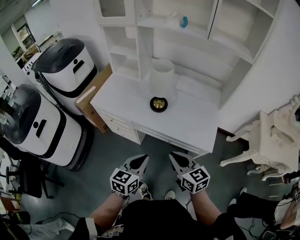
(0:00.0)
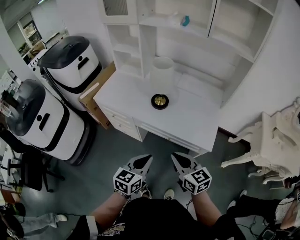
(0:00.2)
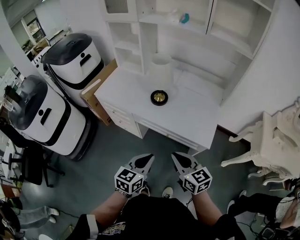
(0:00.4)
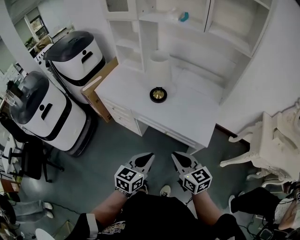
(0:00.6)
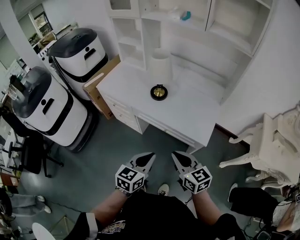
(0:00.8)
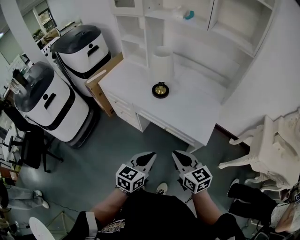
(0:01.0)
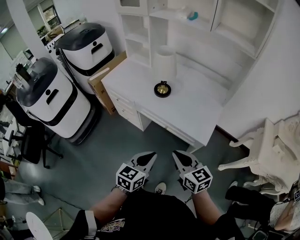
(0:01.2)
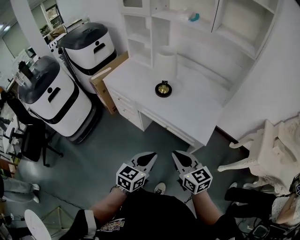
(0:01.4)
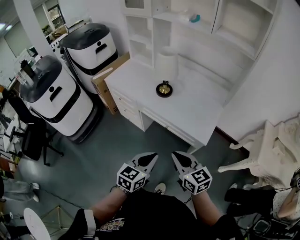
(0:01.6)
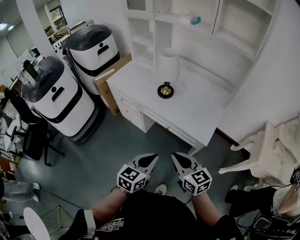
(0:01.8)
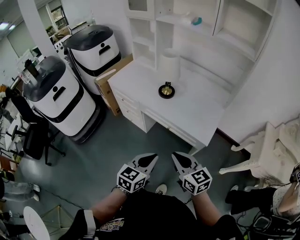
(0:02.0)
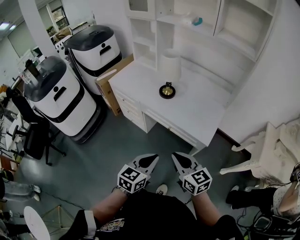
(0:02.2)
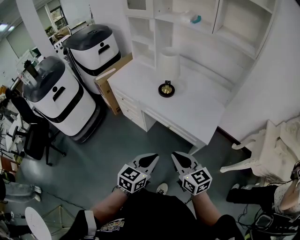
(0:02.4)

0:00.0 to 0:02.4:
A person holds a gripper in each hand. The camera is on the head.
0:00.0 to 0:01.2: The right gripper heads backward and to the right, covering approximately 15 cm, while the left gripper is displaced to the right and backward by roughly 15 cm.
0:01.2 to 0:02.4: There are only small adjustments of the grippers.

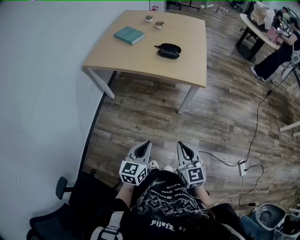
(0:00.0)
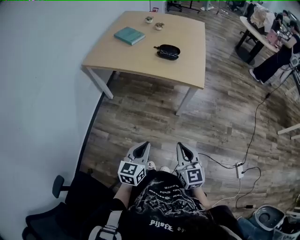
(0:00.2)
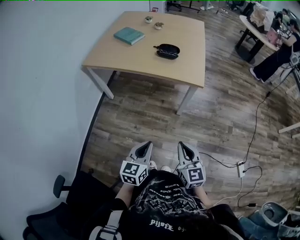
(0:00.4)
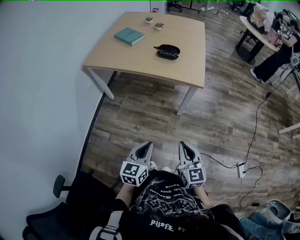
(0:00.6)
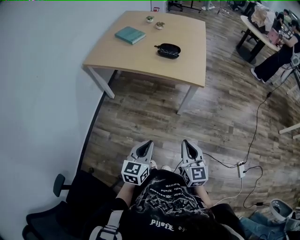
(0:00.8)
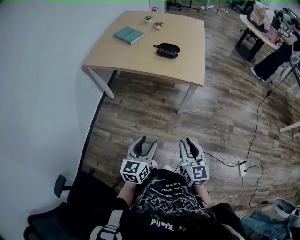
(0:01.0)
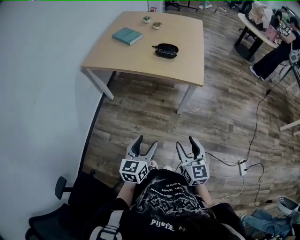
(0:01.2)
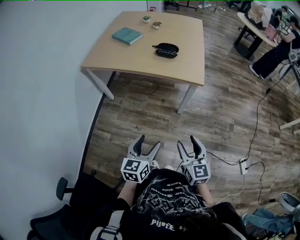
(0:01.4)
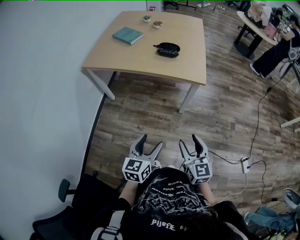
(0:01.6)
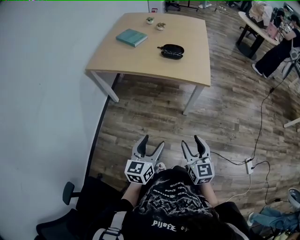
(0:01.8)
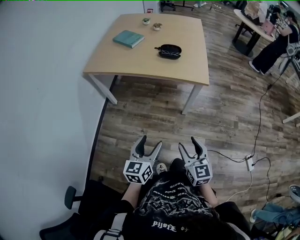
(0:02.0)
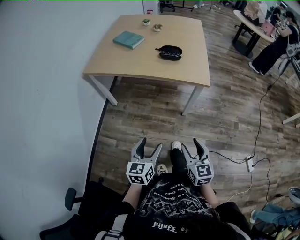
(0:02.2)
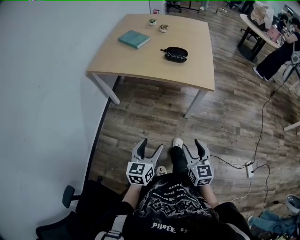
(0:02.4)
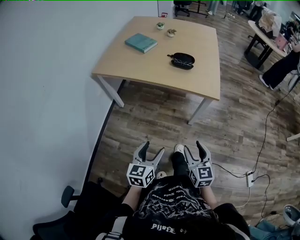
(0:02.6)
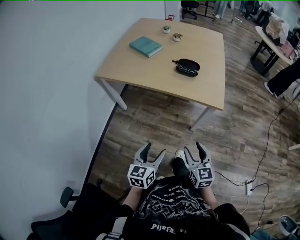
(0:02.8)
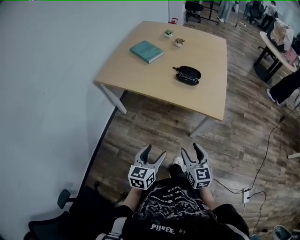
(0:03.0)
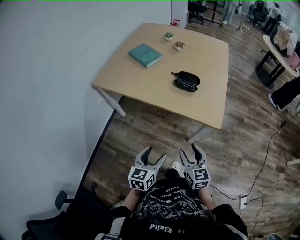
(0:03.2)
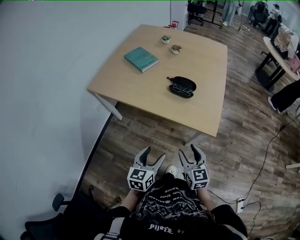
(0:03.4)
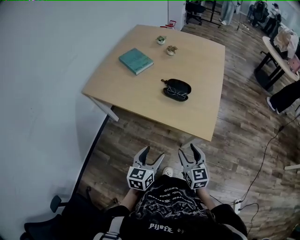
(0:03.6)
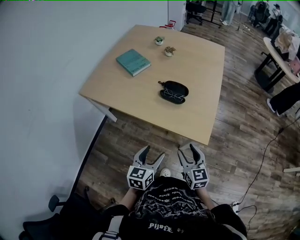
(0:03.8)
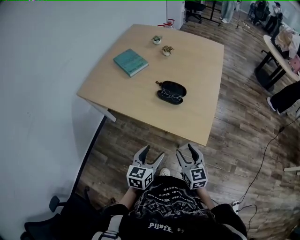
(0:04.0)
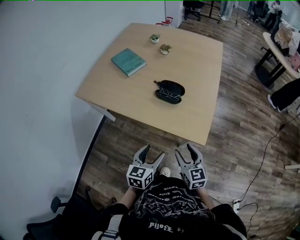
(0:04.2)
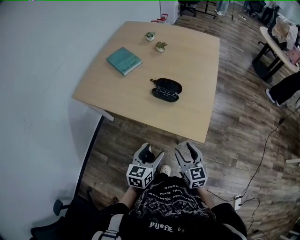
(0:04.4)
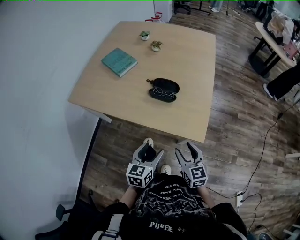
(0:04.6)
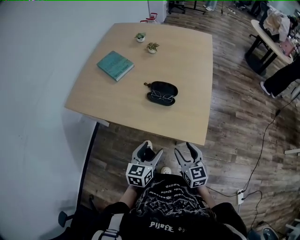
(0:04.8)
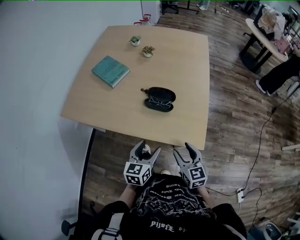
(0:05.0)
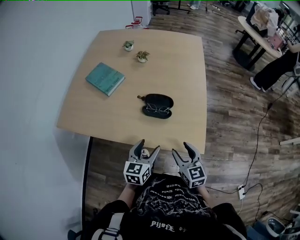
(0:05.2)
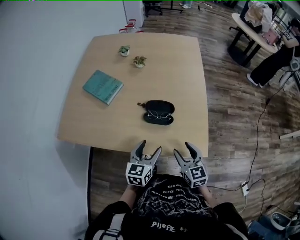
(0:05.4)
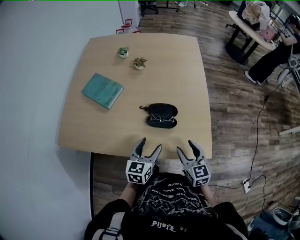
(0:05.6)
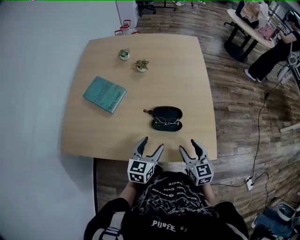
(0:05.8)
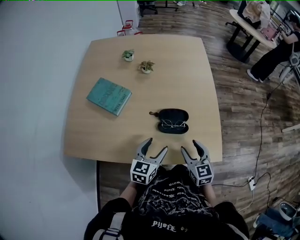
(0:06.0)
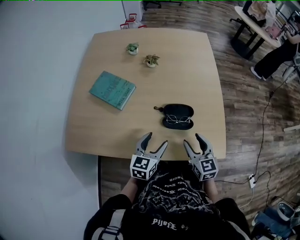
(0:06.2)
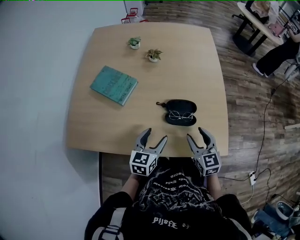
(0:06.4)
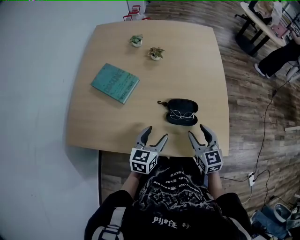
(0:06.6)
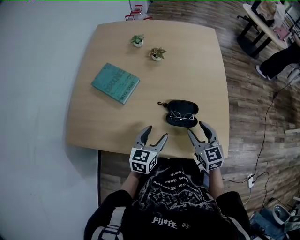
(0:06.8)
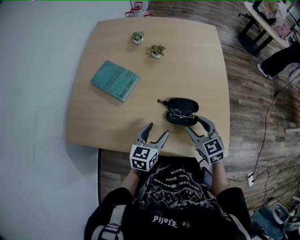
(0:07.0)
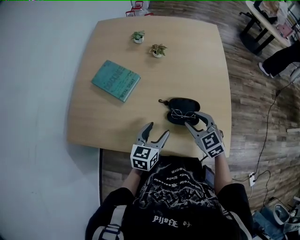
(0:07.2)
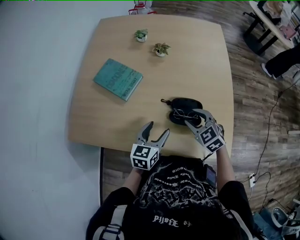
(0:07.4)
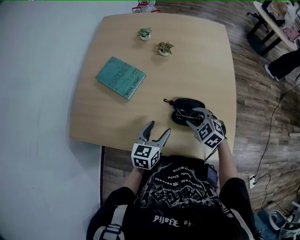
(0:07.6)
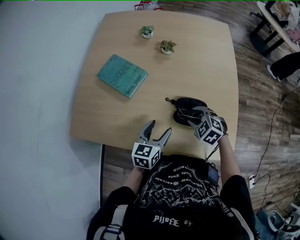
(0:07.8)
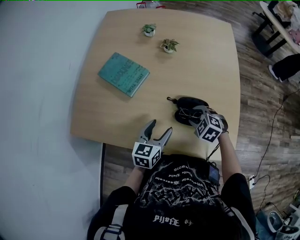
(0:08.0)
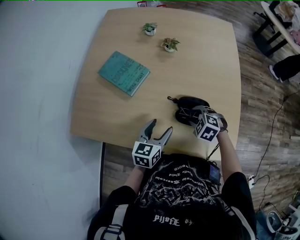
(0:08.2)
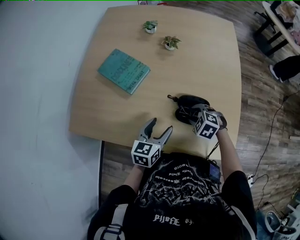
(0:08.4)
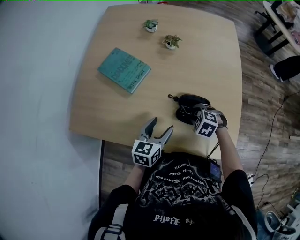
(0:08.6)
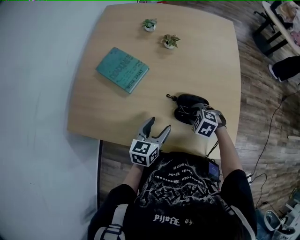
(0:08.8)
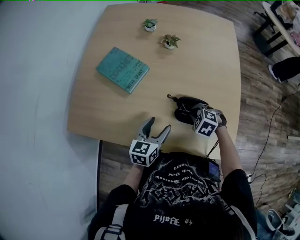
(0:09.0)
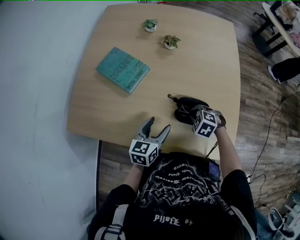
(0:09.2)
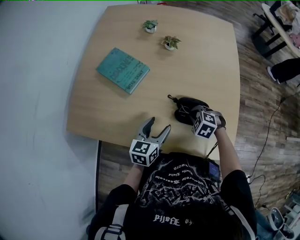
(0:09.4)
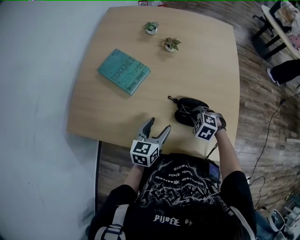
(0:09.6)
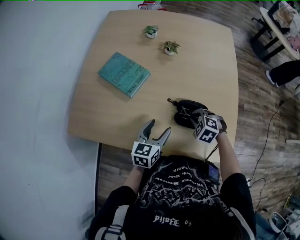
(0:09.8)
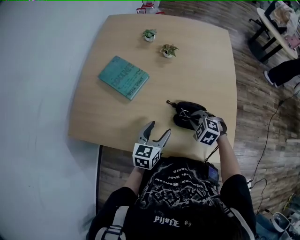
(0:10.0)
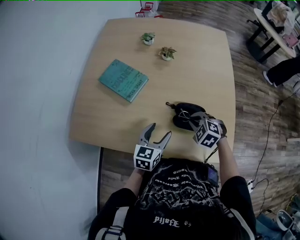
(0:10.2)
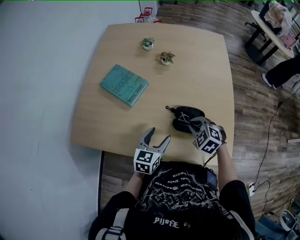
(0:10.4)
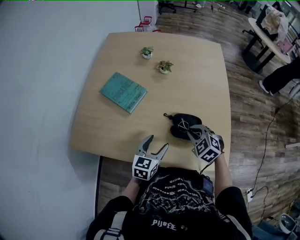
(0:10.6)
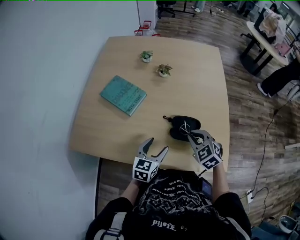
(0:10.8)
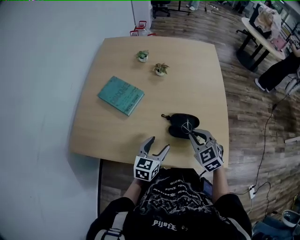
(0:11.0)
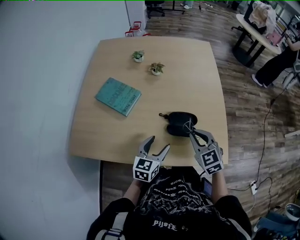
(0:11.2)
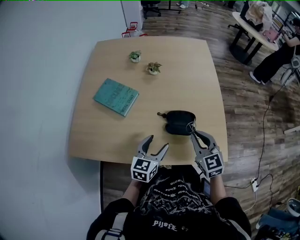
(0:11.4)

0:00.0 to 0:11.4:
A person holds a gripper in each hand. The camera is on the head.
0:00.0 to 0:01.4: The left gripper opens up. Meanwhile the right gripper opens its fingers.
0:01.4 to 0:02.8: The two grippers go approximately 15 cm forward and to the left.
0:02.8 to 0:04.2: The grippers both shift forward and to the right by about 25 cm.
0:04.2 to 0:05.6: The grippers both shift forward by roughly 20 cm.
0:05.6 to 0:07.2: The left gripper travels to the left and forward by roughly 10 cm. The right gripper goes about 15 cm forward and to the left, and changes its angle by approximately 30 degrees.
0:07.2 to 0:08.6: The right gripper moves downward, roughly 10 cm, and points its fingers some 40 degrees further downward.
0:08.6 to 0:10.0: The right gripper closes.
0:10.0 to 0:11.4: The left gripper moves some 5 cm; the right gripper moves upward and backward, approximately 15 cm, and tilts its fingers some 40 degrees upward.

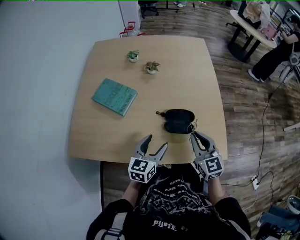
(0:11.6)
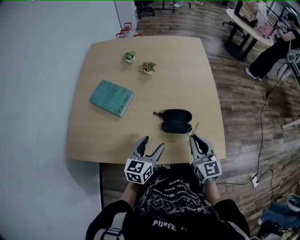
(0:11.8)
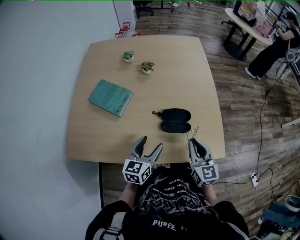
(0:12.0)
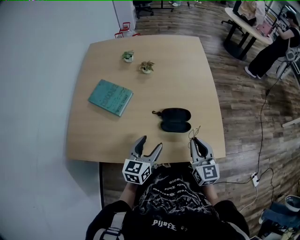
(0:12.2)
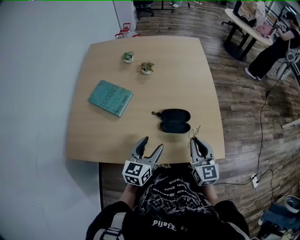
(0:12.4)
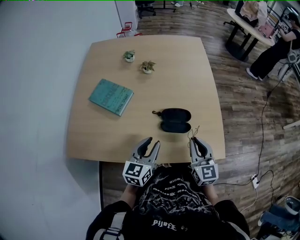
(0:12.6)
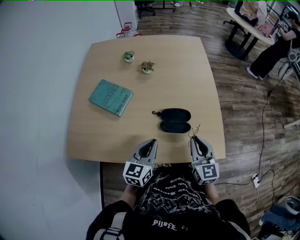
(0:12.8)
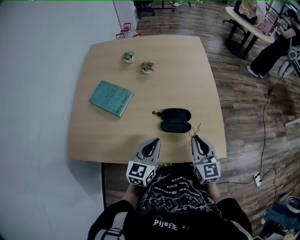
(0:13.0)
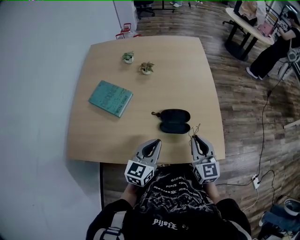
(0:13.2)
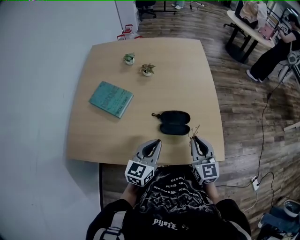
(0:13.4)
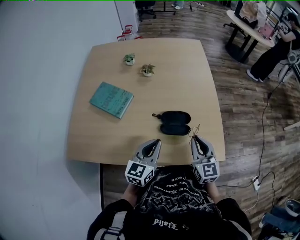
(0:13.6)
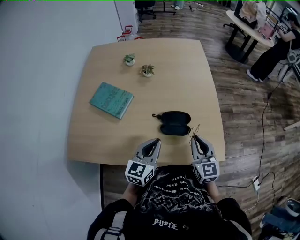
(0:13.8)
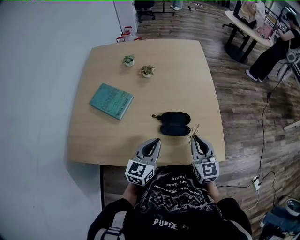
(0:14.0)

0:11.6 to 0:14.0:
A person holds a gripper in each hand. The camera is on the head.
0:11.6 to 0:12.8: The left gripper closes.
0:12.8 to 0:14.0: The grippers move only a little.

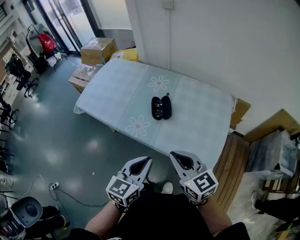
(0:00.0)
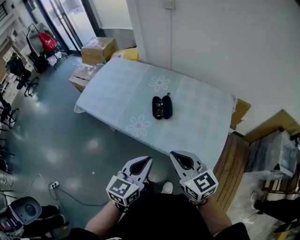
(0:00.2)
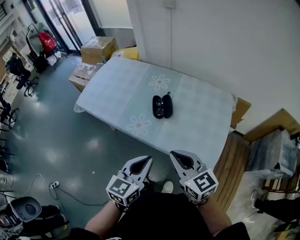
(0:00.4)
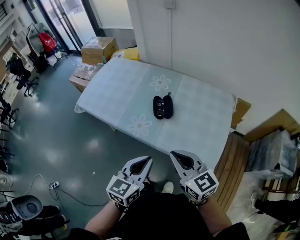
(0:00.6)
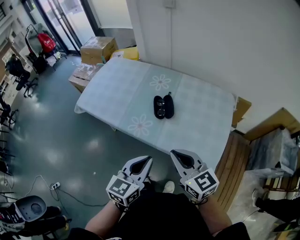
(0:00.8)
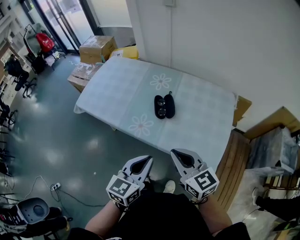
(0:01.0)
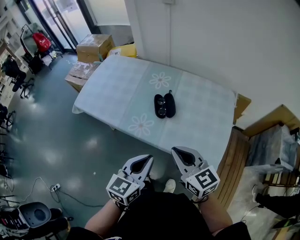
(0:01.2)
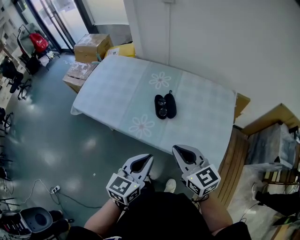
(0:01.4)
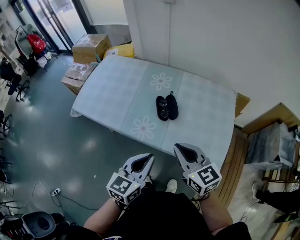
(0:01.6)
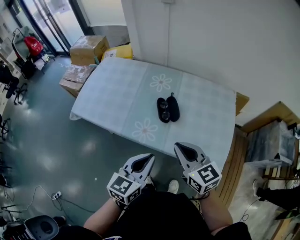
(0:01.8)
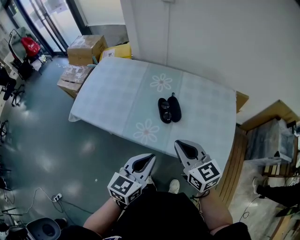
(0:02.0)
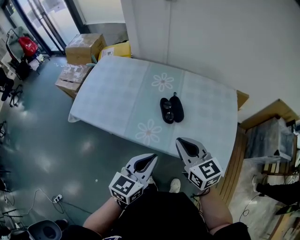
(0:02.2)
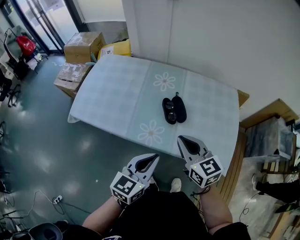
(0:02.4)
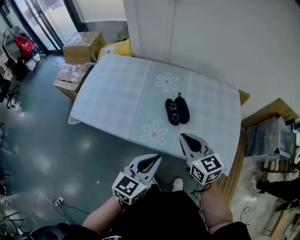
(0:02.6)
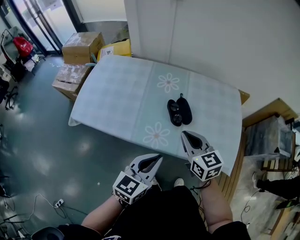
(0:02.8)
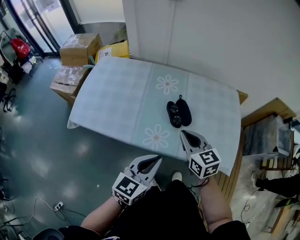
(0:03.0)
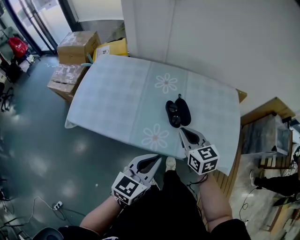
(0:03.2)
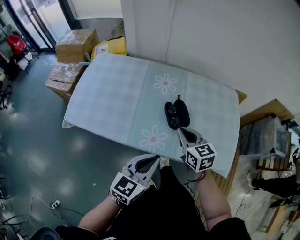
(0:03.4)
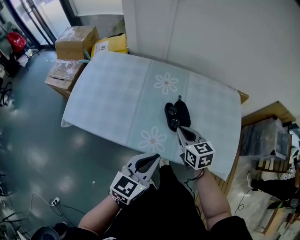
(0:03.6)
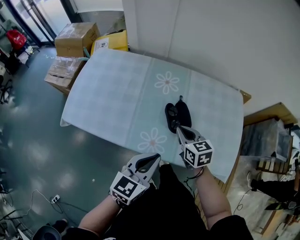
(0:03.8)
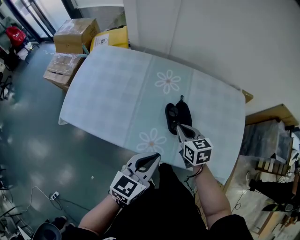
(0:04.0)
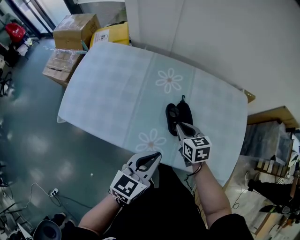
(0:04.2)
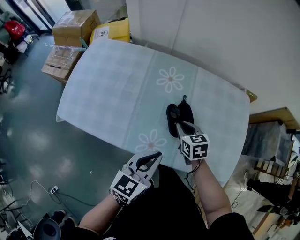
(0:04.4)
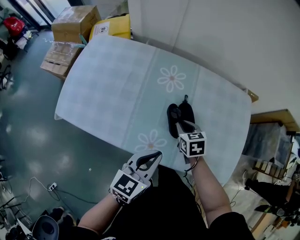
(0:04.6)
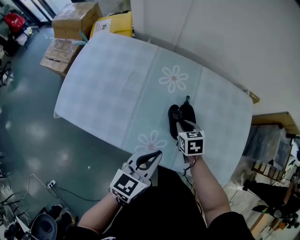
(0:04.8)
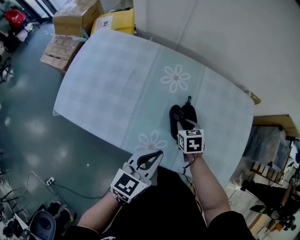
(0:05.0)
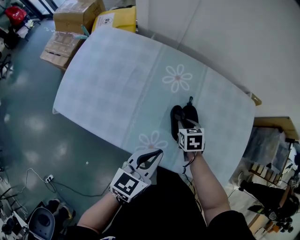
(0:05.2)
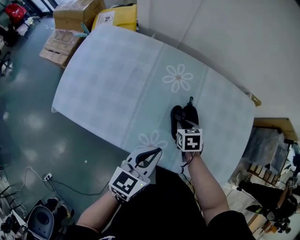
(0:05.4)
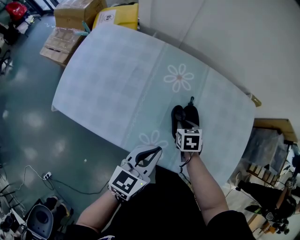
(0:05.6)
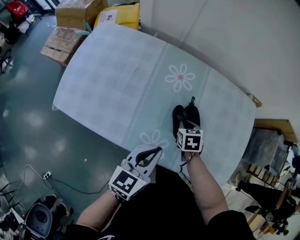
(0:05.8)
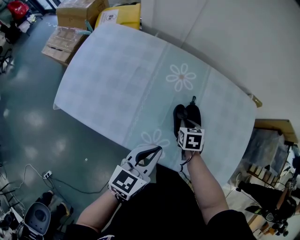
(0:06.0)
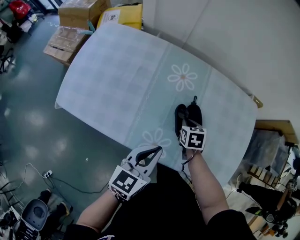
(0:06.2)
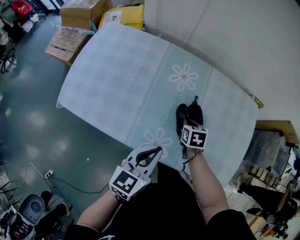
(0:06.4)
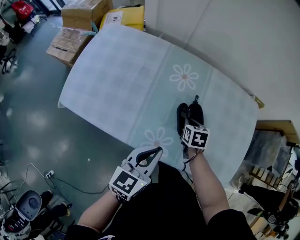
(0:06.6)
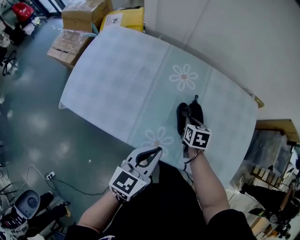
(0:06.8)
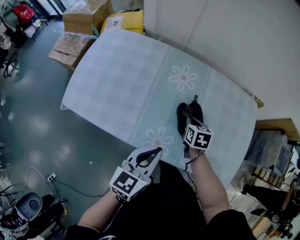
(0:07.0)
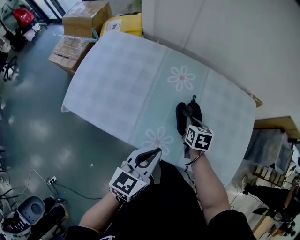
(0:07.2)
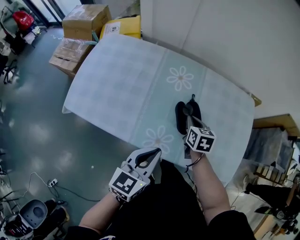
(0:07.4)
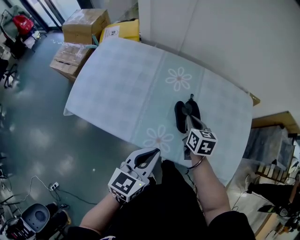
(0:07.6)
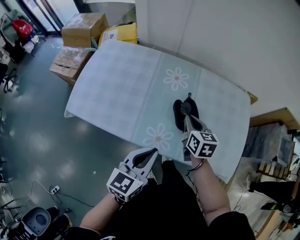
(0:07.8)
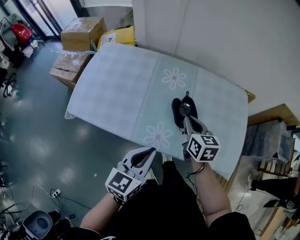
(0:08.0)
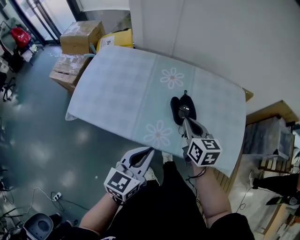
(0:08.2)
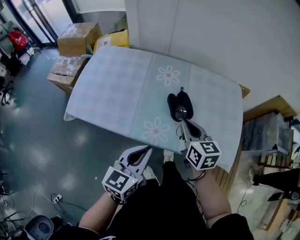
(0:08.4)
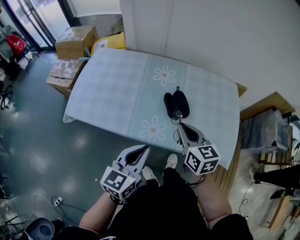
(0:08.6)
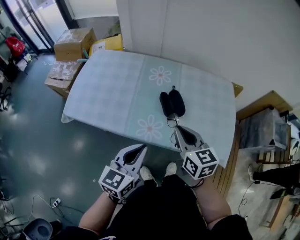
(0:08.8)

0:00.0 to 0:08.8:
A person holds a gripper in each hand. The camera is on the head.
0:00.0 to 0:01.4: The right gripper moves roughly 5 cm.
0:01.4 to 0:03.0: The right gripper moves forward, to the left and downward, roughly 15 cm, while the left gripper goes about 10 cm to the left and forward.
0:03.0 to 0:04.4: The right gripper heads downward and forward, covering some 20 cm, and changes its angle by some 20 degrees. The left gripper shifts about 10 cm forward.
0:04.4 to 0:05.8: The right gripper goes roughly 5 cm downward, while the left gripper moves some 5 cm.
0:05.8 to 0:07.4: The left gripper goes some 5 cm backward; the right gripper shifts about 10 cm upward, and changes its angle by some 20 degrees.
0:07.4 to 0:08.8: The right gripper moves backward and upward, some 25 cm, and changes its angle by some 30 degrees, while the left gripper travels backward by approximately 10 cm.
